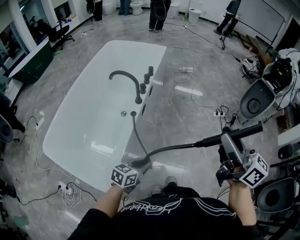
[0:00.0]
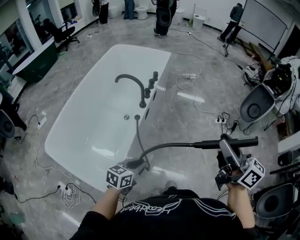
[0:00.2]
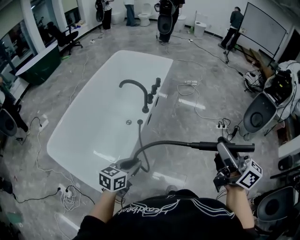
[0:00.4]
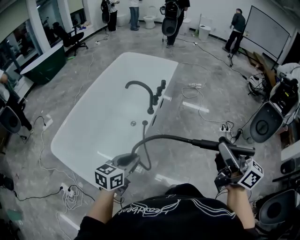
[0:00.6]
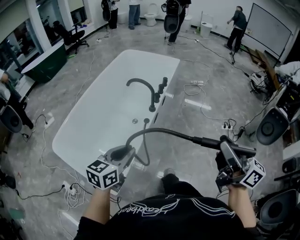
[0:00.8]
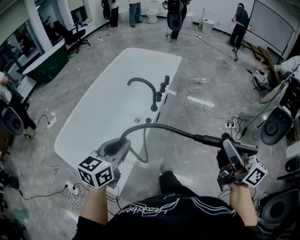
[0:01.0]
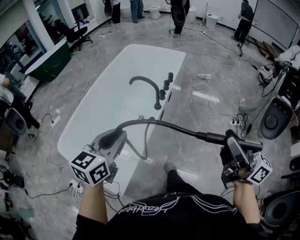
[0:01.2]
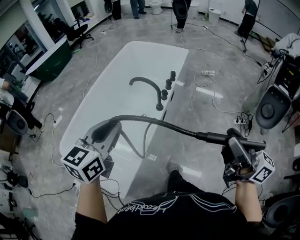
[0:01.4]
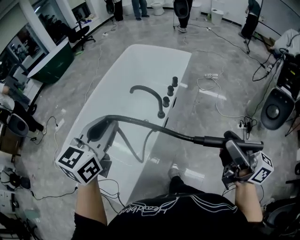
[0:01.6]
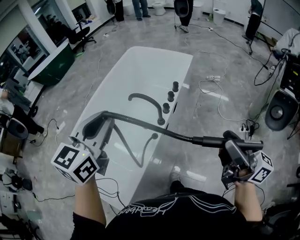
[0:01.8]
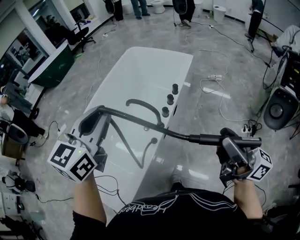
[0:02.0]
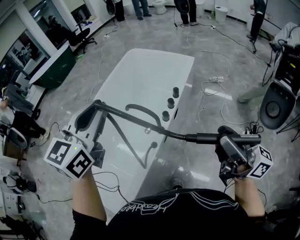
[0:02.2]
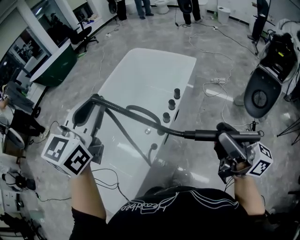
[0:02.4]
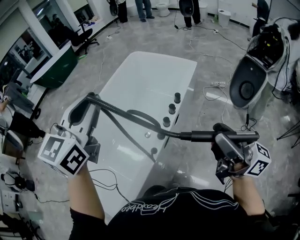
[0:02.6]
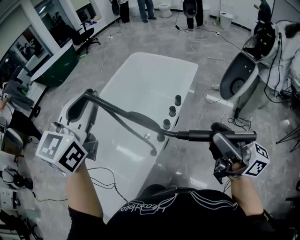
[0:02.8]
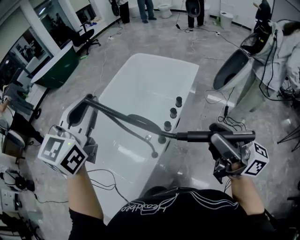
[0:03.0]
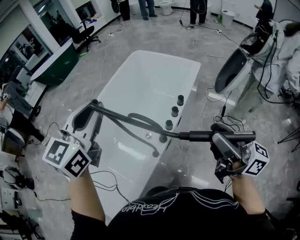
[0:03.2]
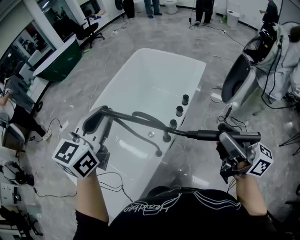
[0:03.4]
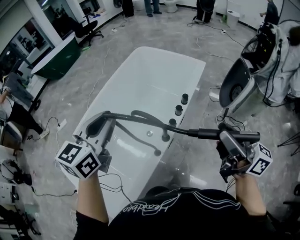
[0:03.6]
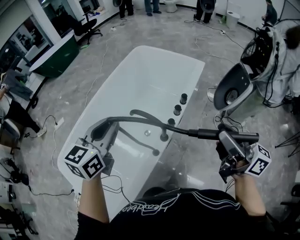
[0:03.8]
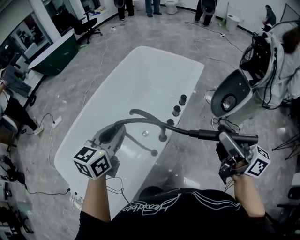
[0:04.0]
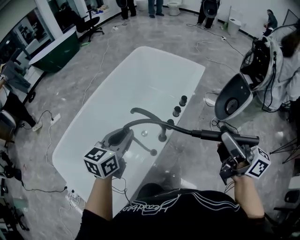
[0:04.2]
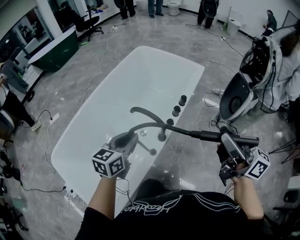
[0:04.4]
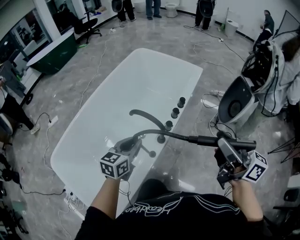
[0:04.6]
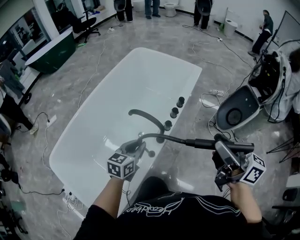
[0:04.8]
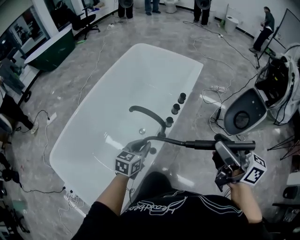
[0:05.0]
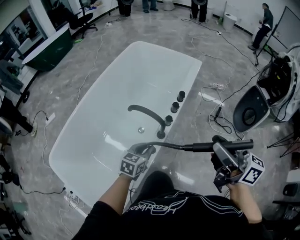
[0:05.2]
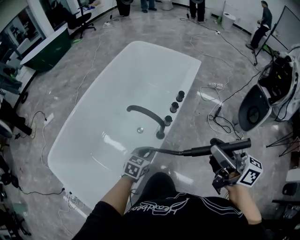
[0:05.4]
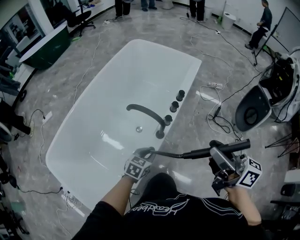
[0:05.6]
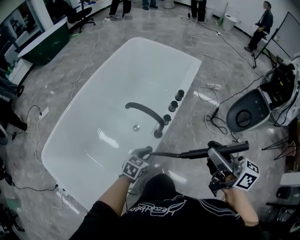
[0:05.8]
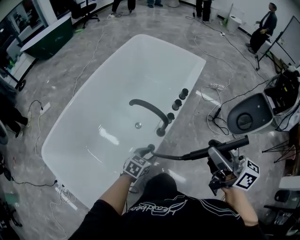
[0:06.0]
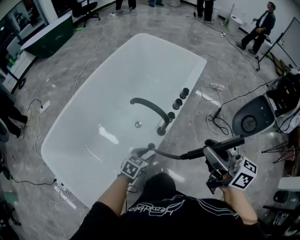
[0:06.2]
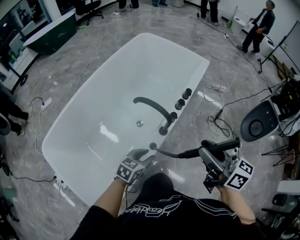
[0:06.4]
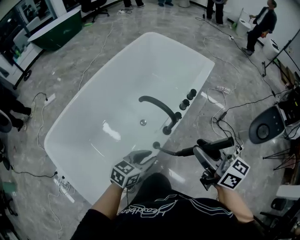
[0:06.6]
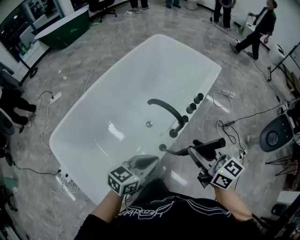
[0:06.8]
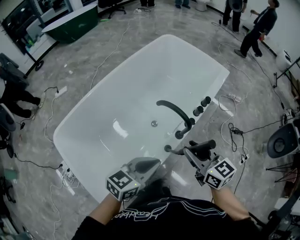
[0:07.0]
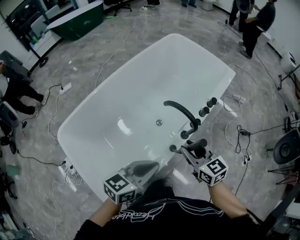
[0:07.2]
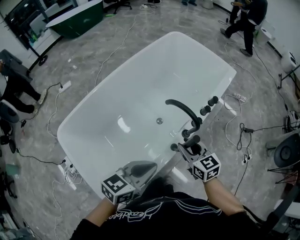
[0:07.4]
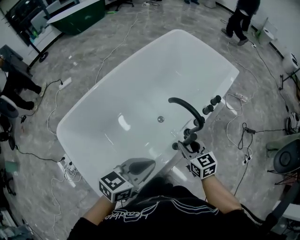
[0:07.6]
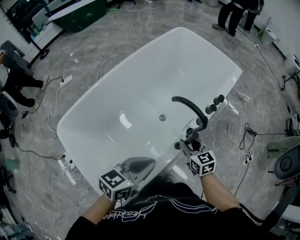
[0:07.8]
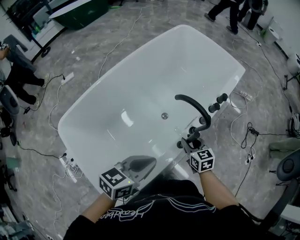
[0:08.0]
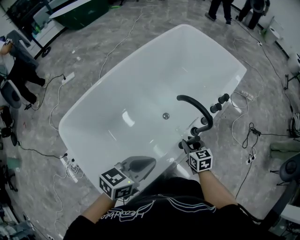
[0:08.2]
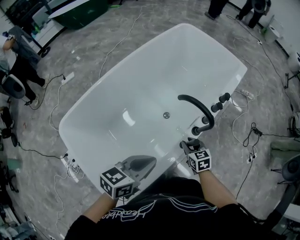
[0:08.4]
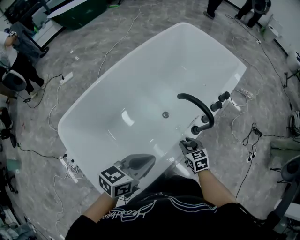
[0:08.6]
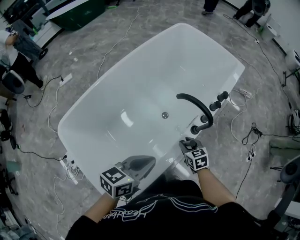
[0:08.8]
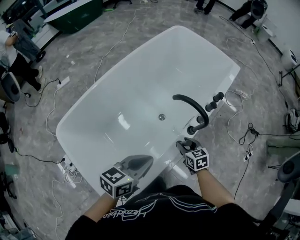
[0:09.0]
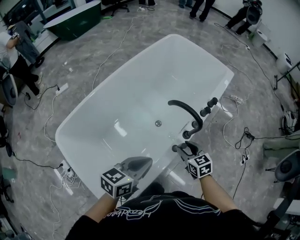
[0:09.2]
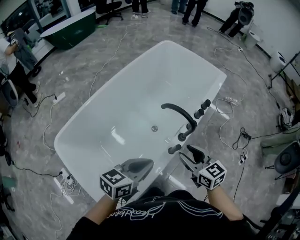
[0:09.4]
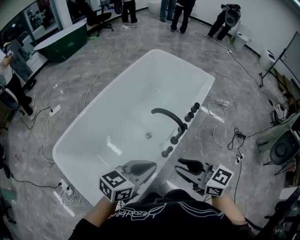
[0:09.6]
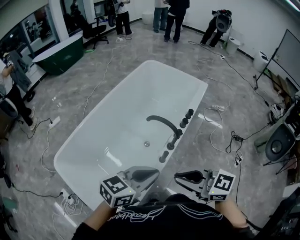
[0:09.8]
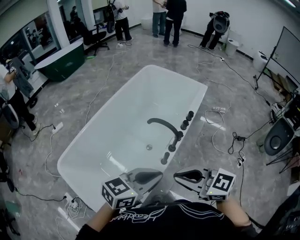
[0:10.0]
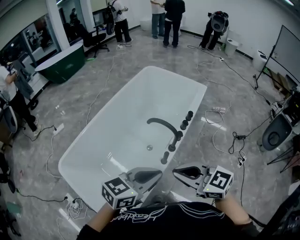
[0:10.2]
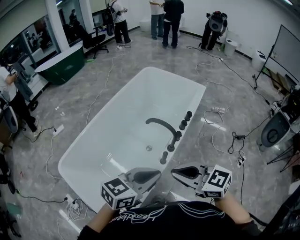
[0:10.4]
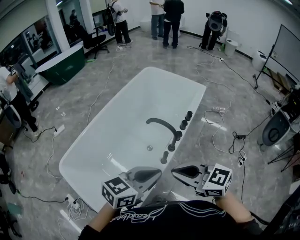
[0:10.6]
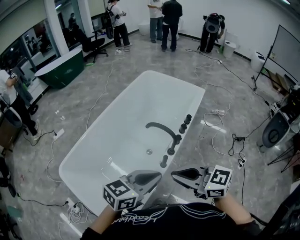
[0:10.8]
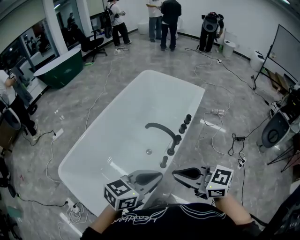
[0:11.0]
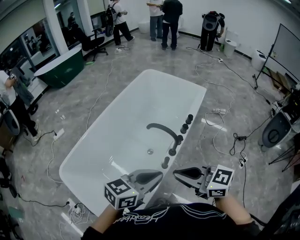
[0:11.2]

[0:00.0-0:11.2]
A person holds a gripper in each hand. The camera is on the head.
0:00.0 to 0:01.6: The right gripper shifts by roughly 15 cm, and swivels some 20 degrees; the left gripper moves upward, some 35 cm, and changes its angle by roughly 40 degrees.
0:01.6 to 0:03.2: Both grippers move forward, some 20 cm.
0:03.2 to 0:04.8: The left gripper moves downward, roughly 30 cm, and turns by approximately 30 degrees.
0:04.8 to 0:06.4: The right gripper goes some 10 cm downward and to the left. The left gripper shifts about 15 cm downward and backward.
0:06.4 to 0:08.0: The right gripper travels downward and to the left by approximately 30 cm, and tilts its fingers roughly 30 degrees downward. Meanwhile the left gripper is displaced upward and to the left by approximately 20 cm, and closes up.
0:08.0 to 0:09.6: The left gripper is displaced upward by roughly 5 cm, while the right gripper travels upward and backward by approximately 25 cm, and turns by roughly 30 degrees.
0:09.6 to 0:11.2: The two grippers go about 5 cm upward. The right gripper closes its fingers.

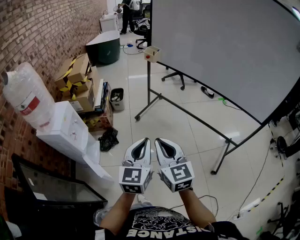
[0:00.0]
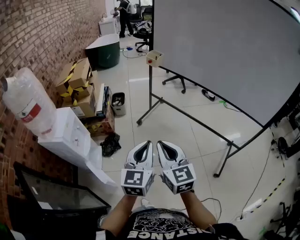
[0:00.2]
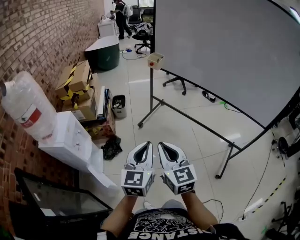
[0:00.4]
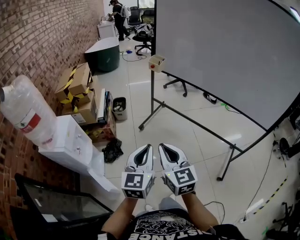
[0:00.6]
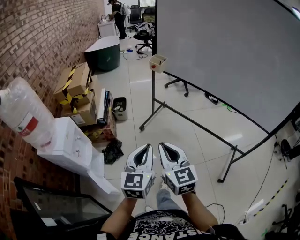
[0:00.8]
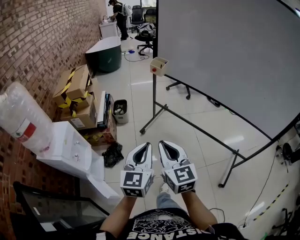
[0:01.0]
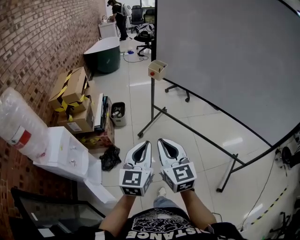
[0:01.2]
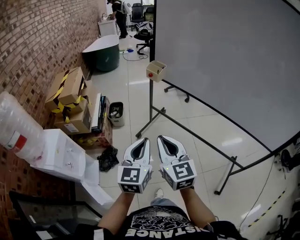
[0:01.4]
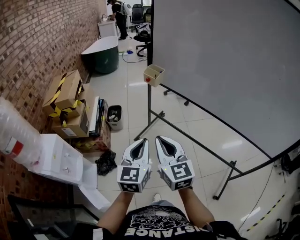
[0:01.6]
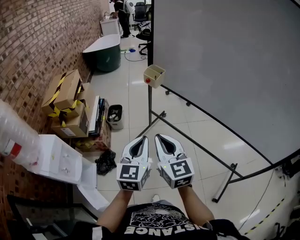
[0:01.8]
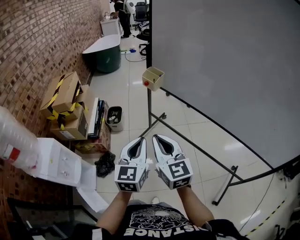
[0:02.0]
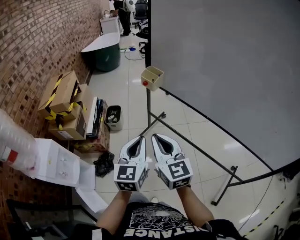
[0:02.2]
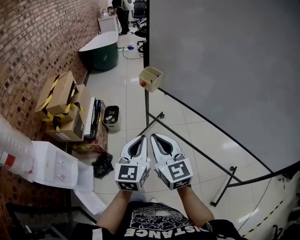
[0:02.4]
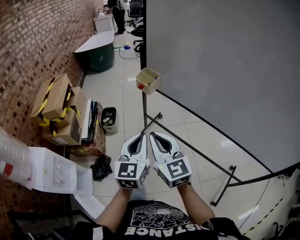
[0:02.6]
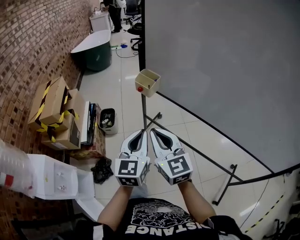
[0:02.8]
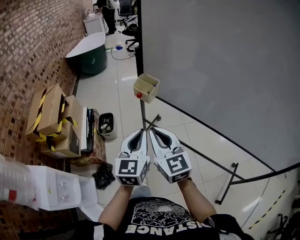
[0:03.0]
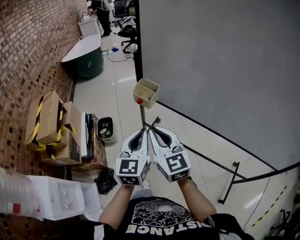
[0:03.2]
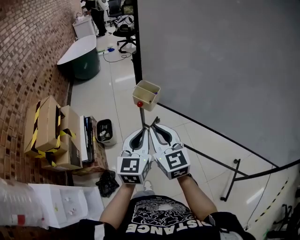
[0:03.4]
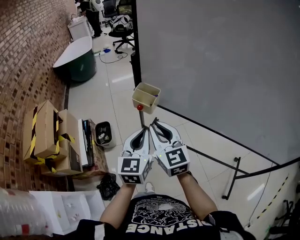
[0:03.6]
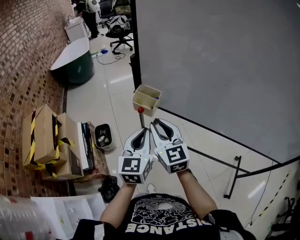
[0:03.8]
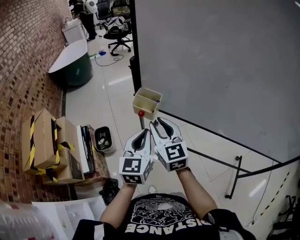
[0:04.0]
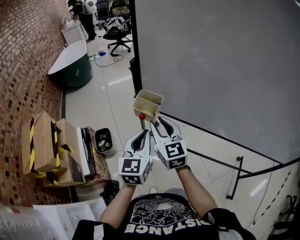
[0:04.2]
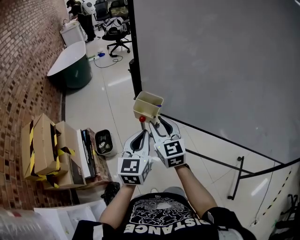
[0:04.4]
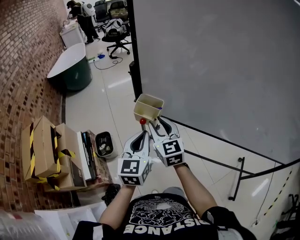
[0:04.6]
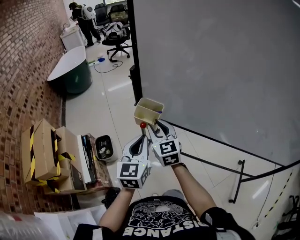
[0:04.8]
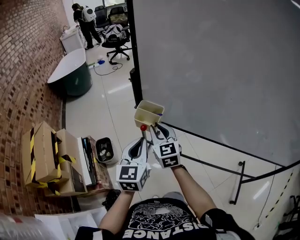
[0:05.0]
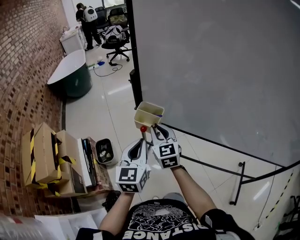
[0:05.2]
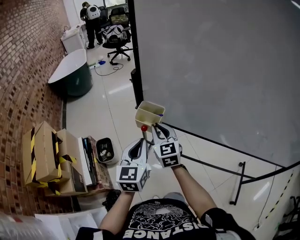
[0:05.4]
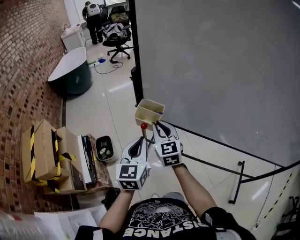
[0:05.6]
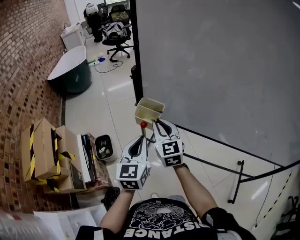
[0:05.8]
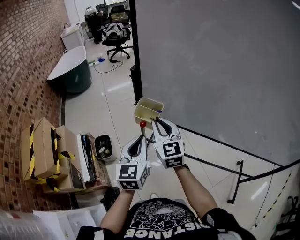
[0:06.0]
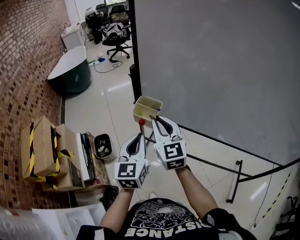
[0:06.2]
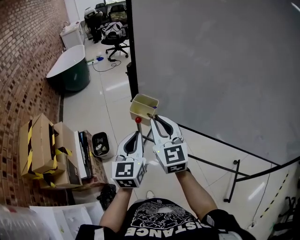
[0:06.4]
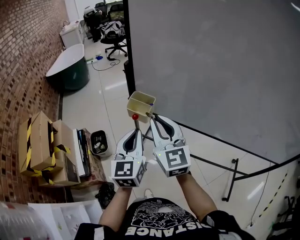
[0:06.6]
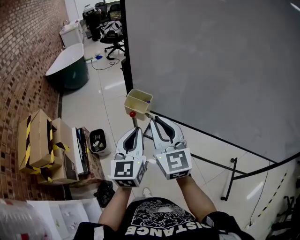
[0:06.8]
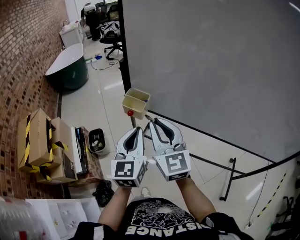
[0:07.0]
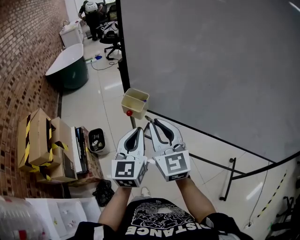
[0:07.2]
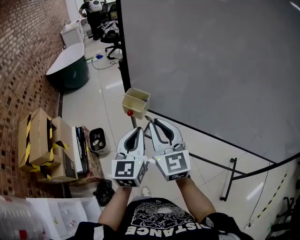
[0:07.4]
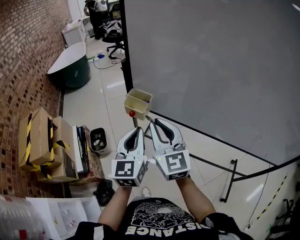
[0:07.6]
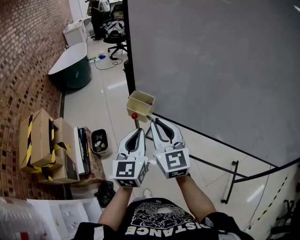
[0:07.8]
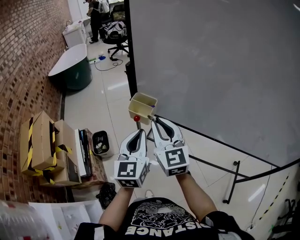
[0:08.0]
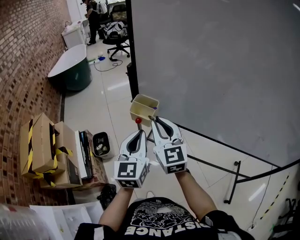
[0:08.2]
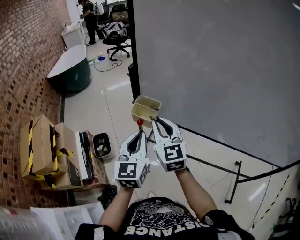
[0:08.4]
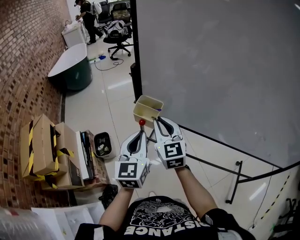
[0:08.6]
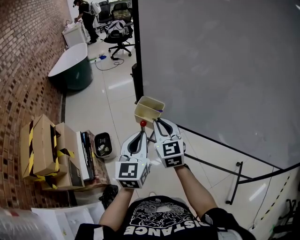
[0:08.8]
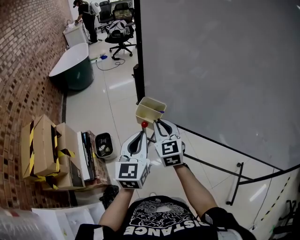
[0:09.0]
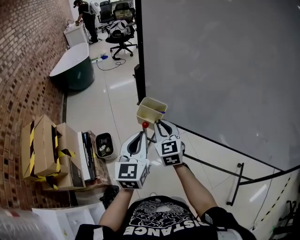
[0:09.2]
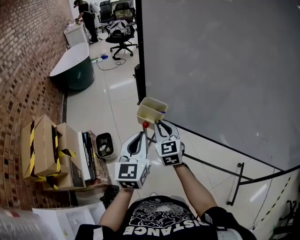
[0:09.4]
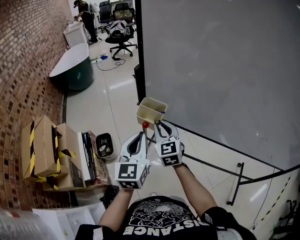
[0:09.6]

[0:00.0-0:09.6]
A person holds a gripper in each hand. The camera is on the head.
0:00.0 to 0:01.6: Both grippers move forward, some 30 cm.
0:01.6 to 0:03.2: The two grippers go roughly 30 cm forward.
0:03.2 to 0:04.8: The right gripper goes about 20 cm forward, and opens its fingers; the left gripper heads forward, covering approximately 15 cm.
0:04.8 to 0:06.4: The right gripper is displaced upward and backward by approximately 10 cm.
0:08.0 to 0:09.6: The left gripper moves roughly 5 cm. The right gripper shifts approximately 15 cm downward and forward.

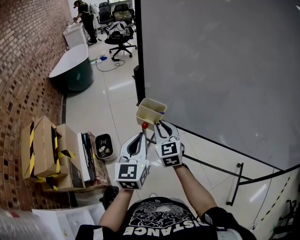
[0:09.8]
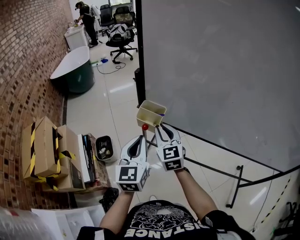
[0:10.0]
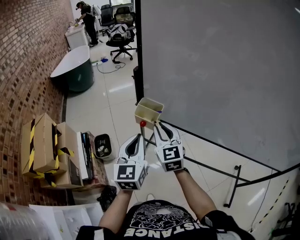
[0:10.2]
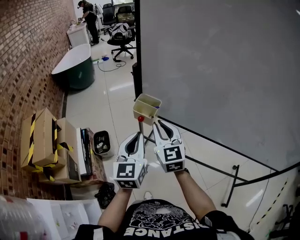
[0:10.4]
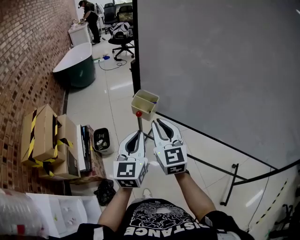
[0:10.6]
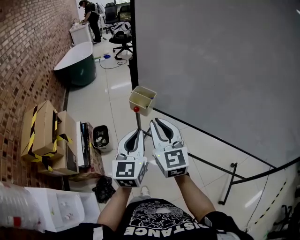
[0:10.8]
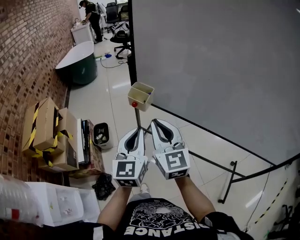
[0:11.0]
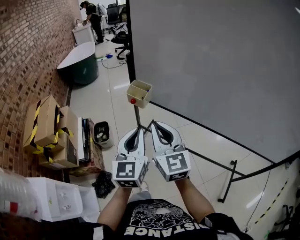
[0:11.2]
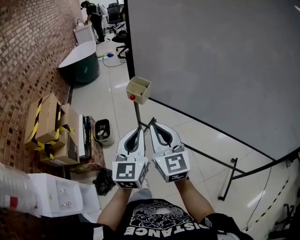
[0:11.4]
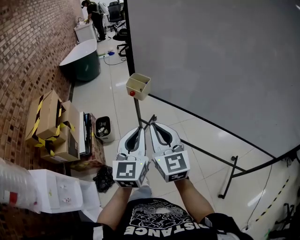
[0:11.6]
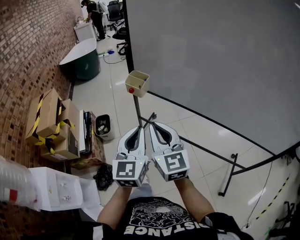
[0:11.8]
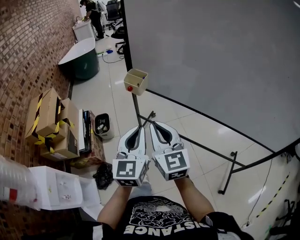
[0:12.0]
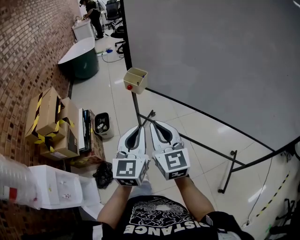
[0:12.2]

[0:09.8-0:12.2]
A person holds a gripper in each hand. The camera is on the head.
0:09.8 to 0:11.0: The right gripper heads backward and upward, covering about 25 cm, while the left gripper is displaced backward by approximately 15 cm.
0:11.0 to 0:12.2: The grippers both shift backward by approximately 10 cm.
